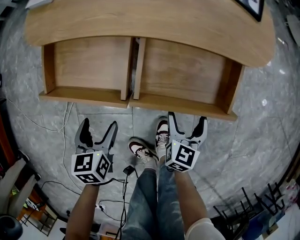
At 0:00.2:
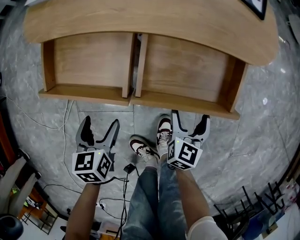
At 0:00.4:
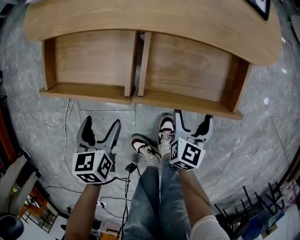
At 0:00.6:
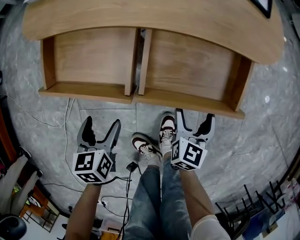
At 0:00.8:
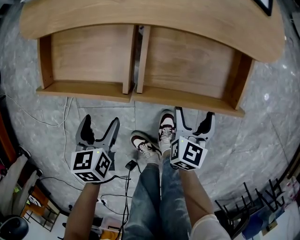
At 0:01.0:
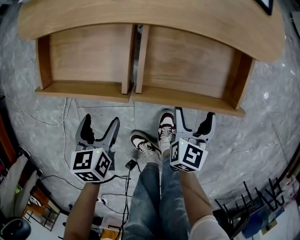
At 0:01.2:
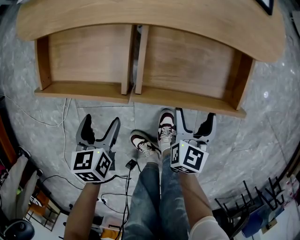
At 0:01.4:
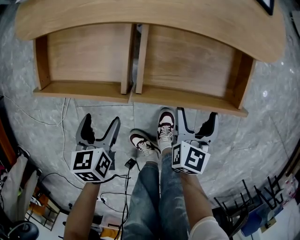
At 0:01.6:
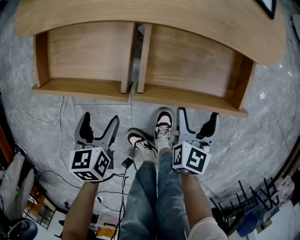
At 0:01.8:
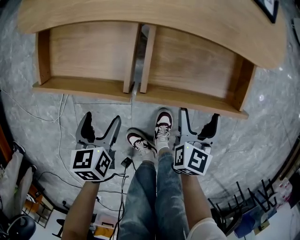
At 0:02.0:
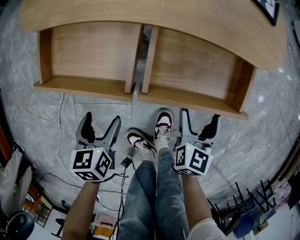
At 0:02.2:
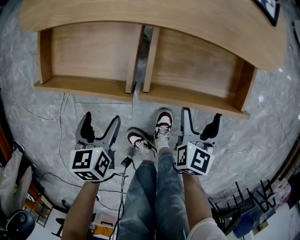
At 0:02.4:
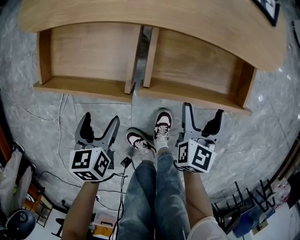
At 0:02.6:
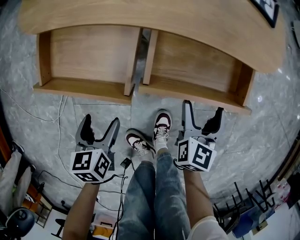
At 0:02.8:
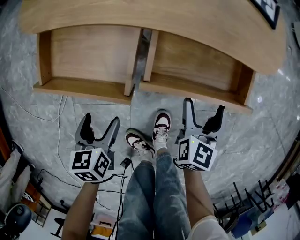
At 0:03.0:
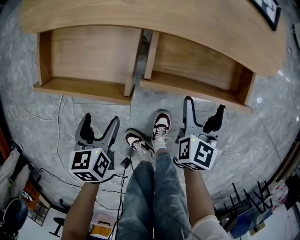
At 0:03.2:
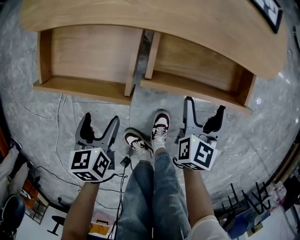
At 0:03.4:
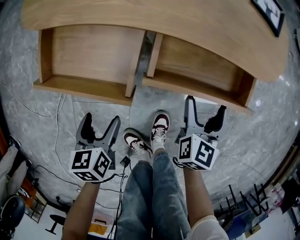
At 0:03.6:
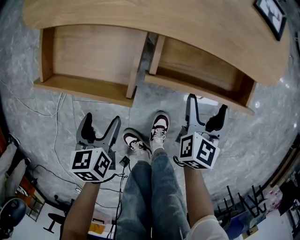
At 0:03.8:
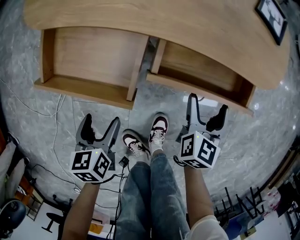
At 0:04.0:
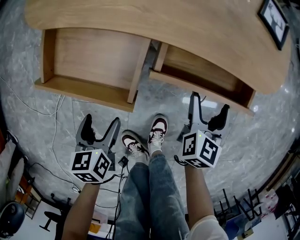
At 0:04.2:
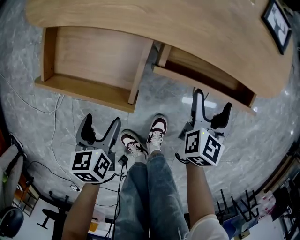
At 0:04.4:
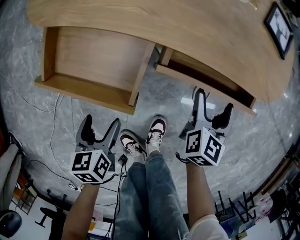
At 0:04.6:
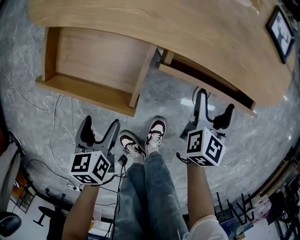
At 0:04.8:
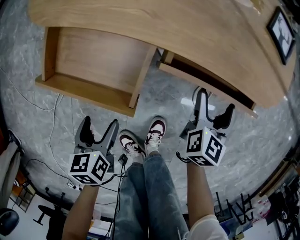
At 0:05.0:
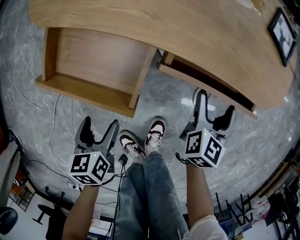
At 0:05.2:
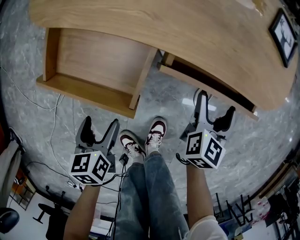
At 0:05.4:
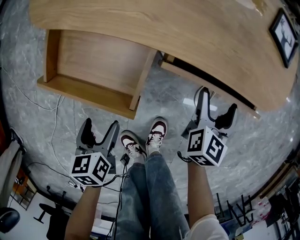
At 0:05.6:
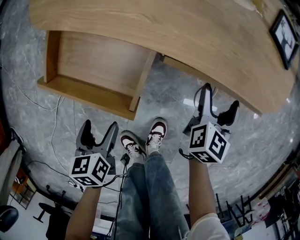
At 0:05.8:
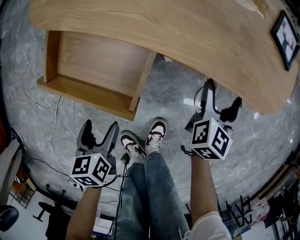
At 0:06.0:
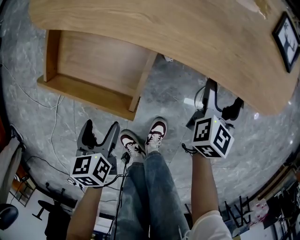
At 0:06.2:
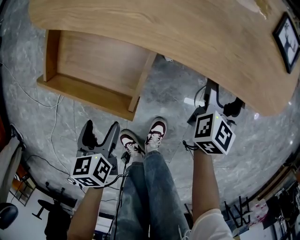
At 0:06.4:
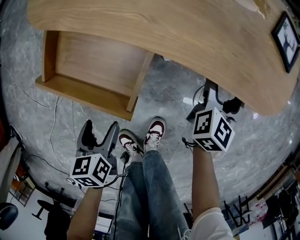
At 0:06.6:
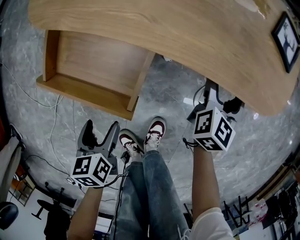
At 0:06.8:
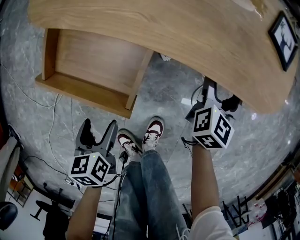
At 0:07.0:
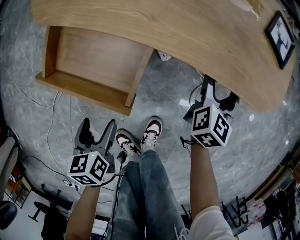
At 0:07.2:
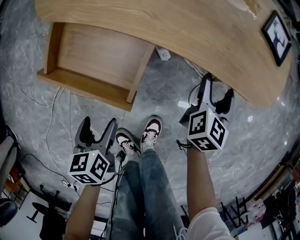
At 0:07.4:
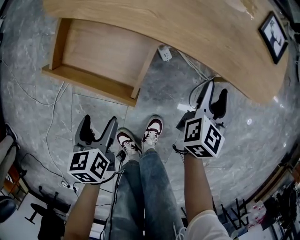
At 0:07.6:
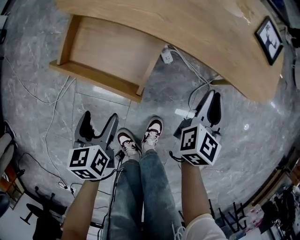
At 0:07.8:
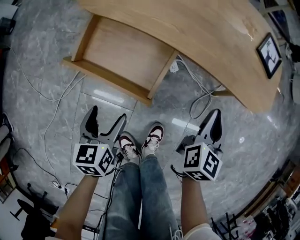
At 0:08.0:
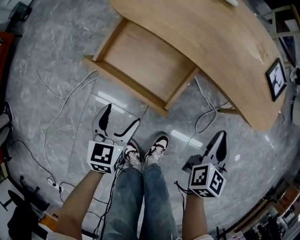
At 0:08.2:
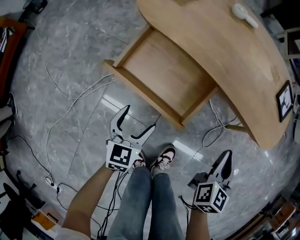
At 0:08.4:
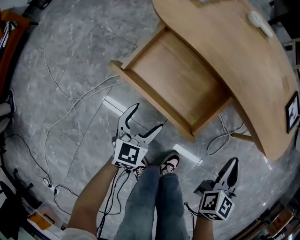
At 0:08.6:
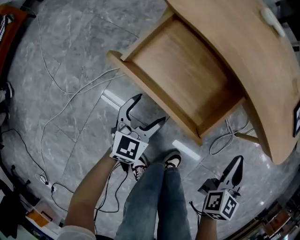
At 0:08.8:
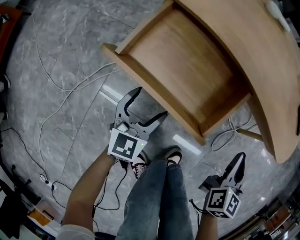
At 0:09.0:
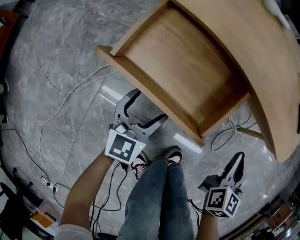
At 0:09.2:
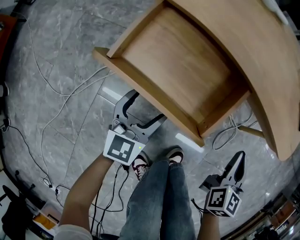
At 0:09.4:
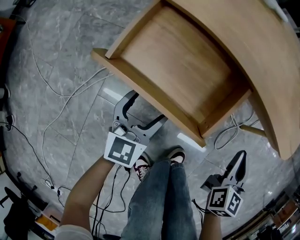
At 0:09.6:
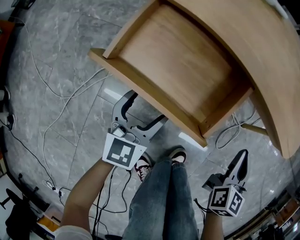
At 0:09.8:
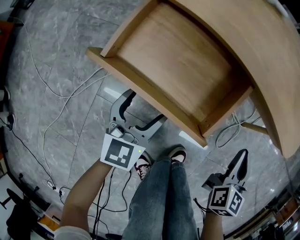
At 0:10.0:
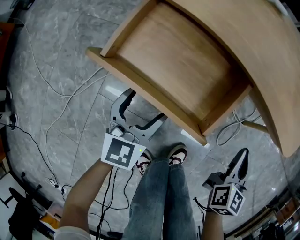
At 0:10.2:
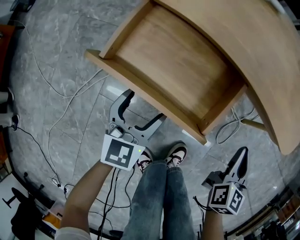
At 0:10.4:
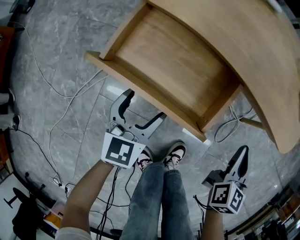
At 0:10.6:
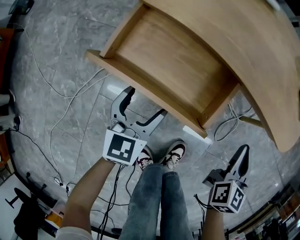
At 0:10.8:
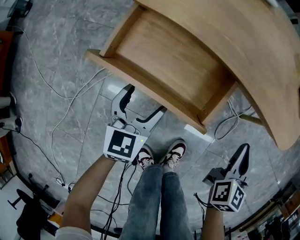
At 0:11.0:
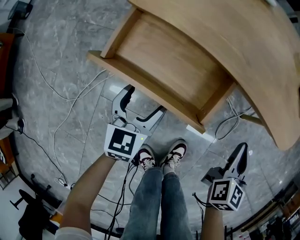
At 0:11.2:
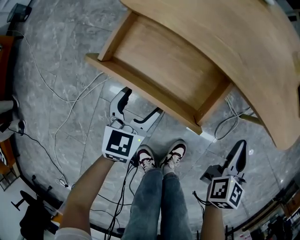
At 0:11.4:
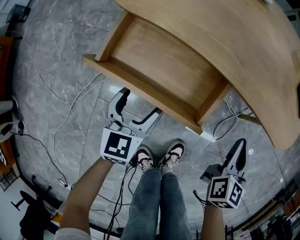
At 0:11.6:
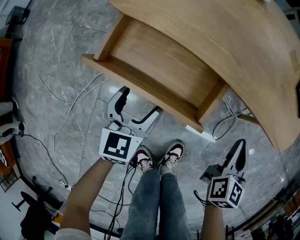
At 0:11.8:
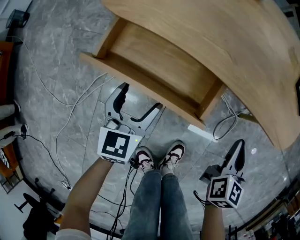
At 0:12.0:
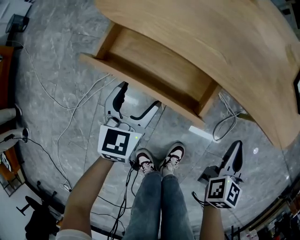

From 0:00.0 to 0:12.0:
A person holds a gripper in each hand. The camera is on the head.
From 0:00.0 to 0:01.6: There are only small adjustments of the grippers.
From 0:01.6 to 0:03.0: The right gripper travels forward by some 5 cm.
From 0:03.0 to 0:04.4: The right gripper shifts roughly 5 cm forward.
From 0:04.4 to 0:06.0: The right gripper heads forward, covering some 5 cm.
From 0:06.0 to 0:07.6: The right gripper heads backward and upward, covering about 10 cm, and closes up, while the left gripper goes some 5 cm upward.
From 0:07.6 to 0:09.0: The right gripper shifts some 5 cm to the left. The left gripper moves downward, forward and to the left, some 15 cm, and turns by some 40 degrees.
From 0:09.0 to 0:10.4: There are only small adjustments of the grippers.
From 0:10.4 to 0:12.0: The left gripper heads forward, covering some 5 cm.

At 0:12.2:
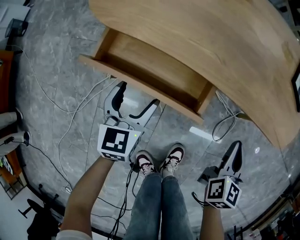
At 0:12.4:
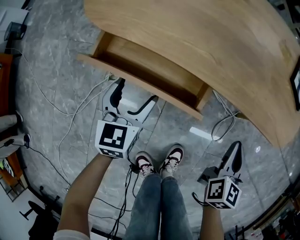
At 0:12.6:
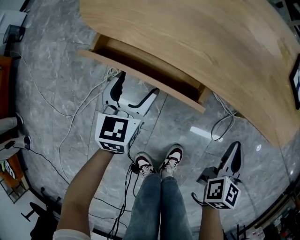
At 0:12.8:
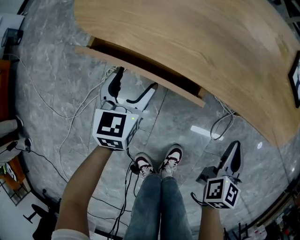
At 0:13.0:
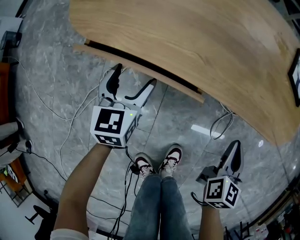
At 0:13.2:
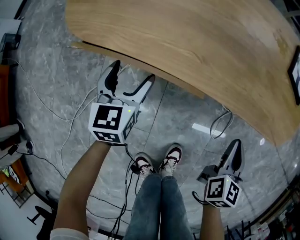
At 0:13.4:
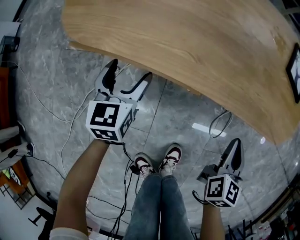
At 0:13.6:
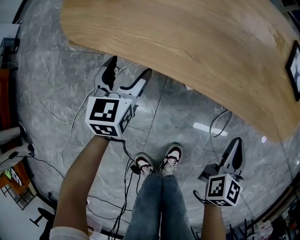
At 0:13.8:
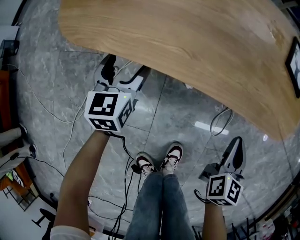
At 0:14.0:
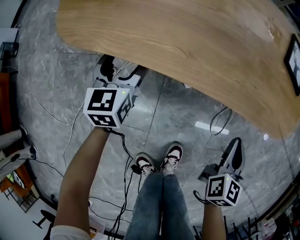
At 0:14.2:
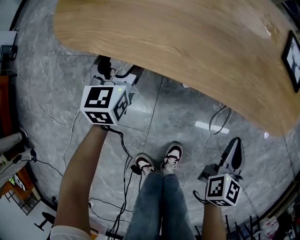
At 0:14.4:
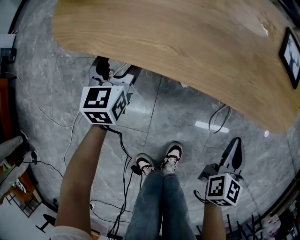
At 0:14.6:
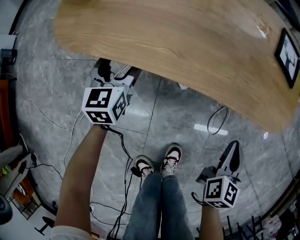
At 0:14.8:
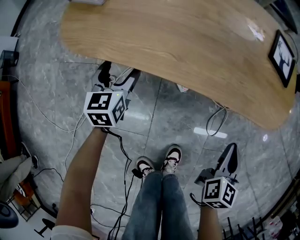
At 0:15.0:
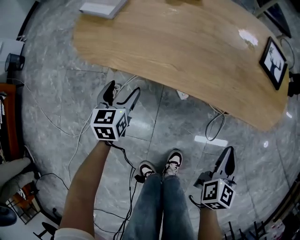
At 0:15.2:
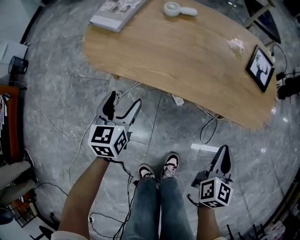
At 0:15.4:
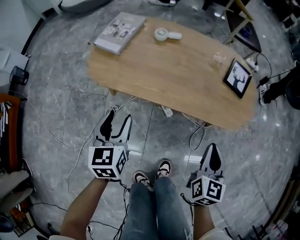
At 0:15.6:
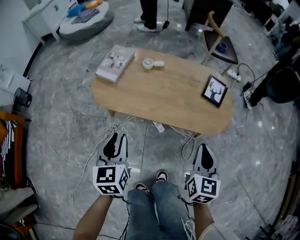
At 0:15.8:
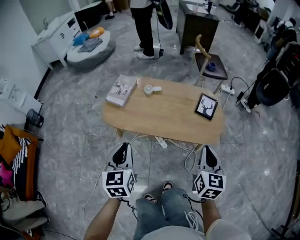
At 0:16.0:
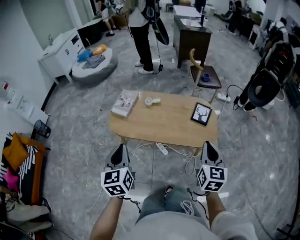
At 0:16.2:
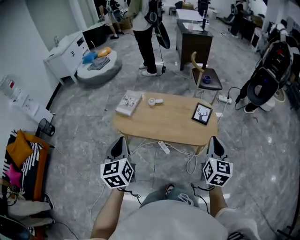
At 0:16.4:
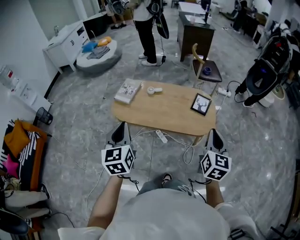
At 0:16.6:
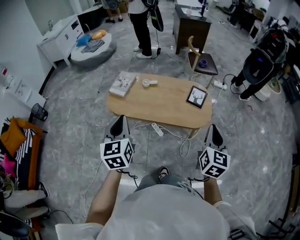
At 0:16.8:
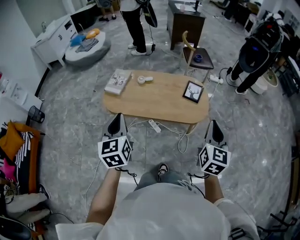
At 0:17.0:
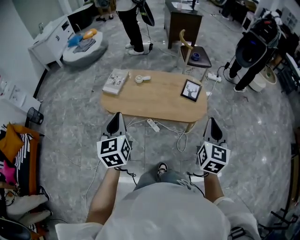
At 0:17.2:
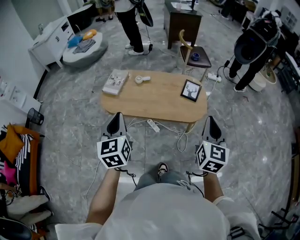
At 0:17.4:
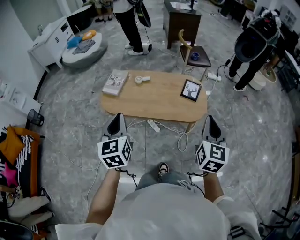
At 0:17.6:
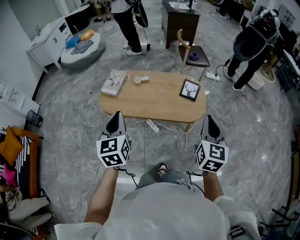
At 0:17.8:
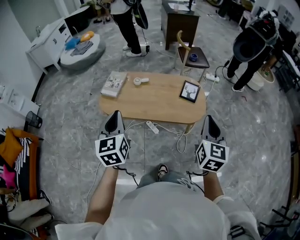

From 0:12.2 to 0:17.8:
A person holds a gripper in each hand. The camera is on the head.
From 0:12.2 to 0:13.6: The left gripper moves forward, roughly 10 cm, while the right gripper moves about 5 cm.
From 0:13.6 to 0:15.0: The right gripper shifts roughly 5 cm upward.
From 0:15.0 to 0:16.4: The grippers both shift upward by approximately 60 cm. The right gripper rotates approximately 20 degrees; the left gripper changes its angle by some 30 degrees, and closes.
From 0:16.4 to 0:17.8: The grippers stay close to where they were, moving slightly.

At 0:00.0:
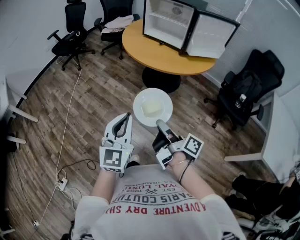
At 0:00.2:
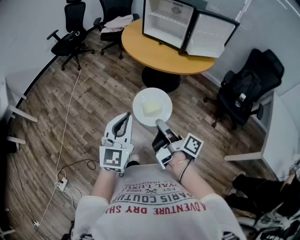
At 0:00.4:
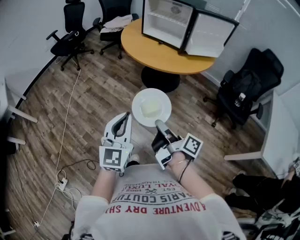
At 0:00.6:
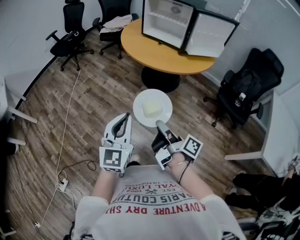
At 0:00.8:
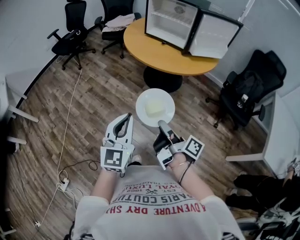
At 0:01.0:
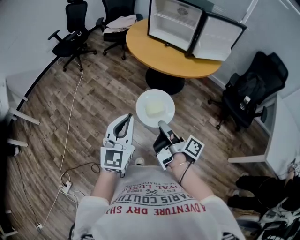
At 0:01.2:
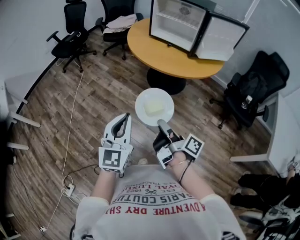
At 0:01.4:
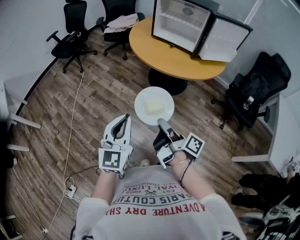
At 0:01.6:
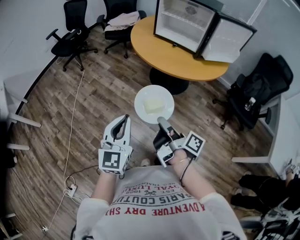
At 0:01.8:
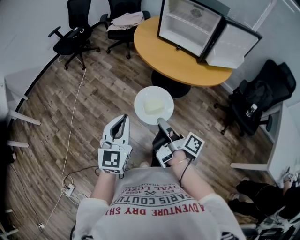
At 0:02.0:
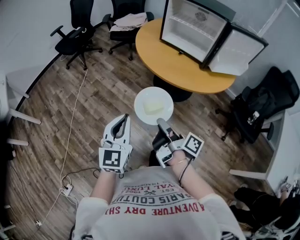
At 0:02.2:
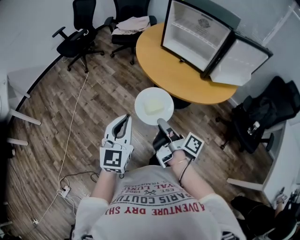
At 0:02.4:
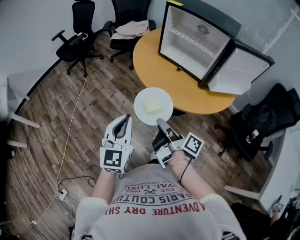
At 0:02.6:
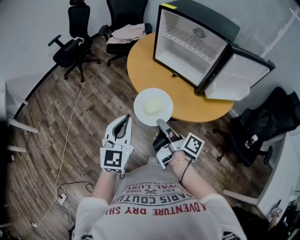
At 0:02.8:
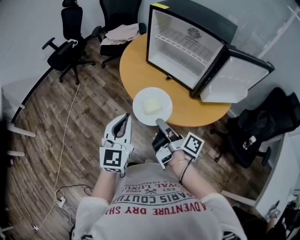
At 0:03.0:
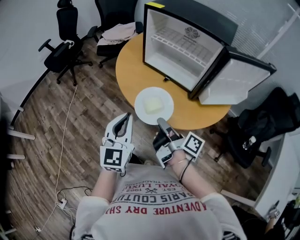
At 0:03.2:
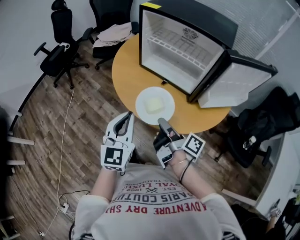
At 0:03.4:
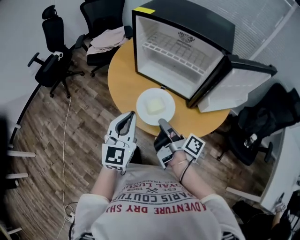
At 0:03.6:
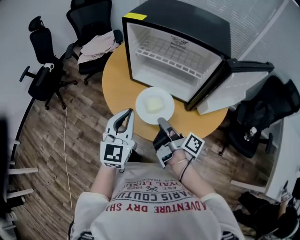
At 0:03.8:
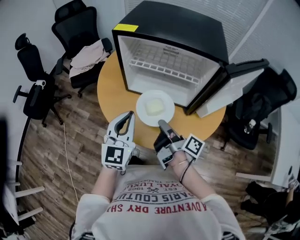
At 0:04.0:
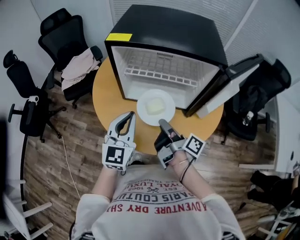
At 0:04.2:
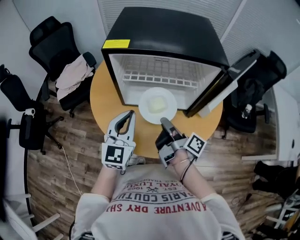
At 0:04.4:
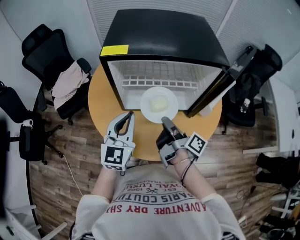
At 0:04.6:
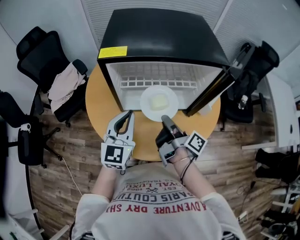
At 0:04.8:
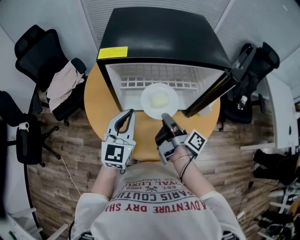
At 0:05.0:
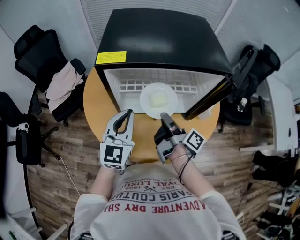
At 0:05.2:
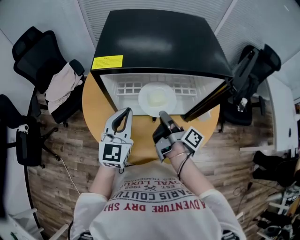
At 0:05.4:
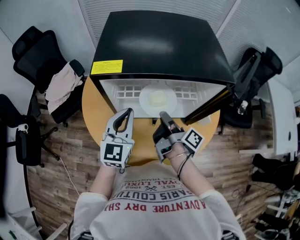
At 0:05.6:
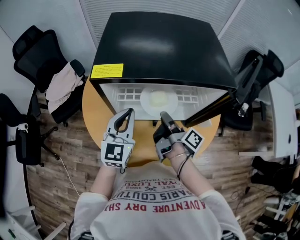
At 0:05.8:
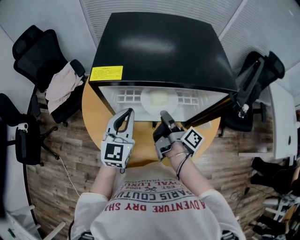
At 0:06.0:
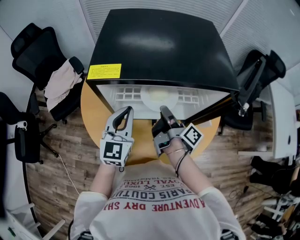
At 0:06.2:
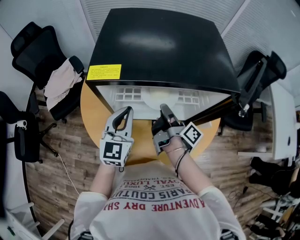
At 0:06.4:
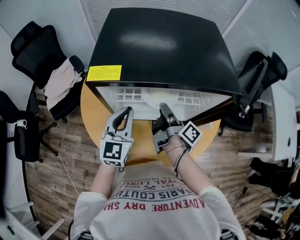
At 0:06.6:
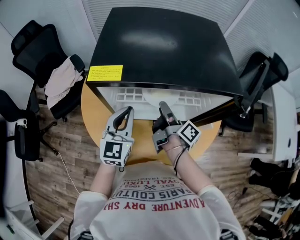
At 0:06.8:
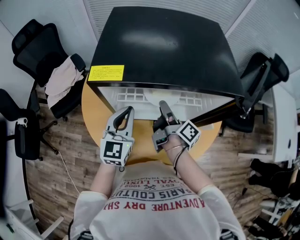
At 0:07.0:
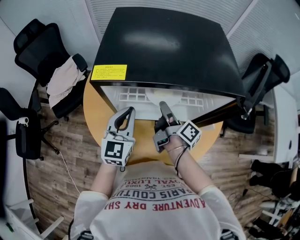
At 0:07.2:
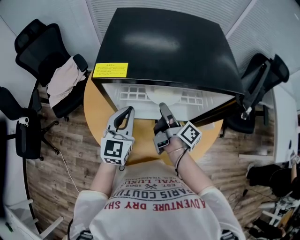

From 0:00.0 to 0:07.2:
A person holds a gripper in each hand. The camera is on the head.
From 0:00.0 to 0:01.4: The left gripper ends up about 15 cm from where it was.
From 0:01.4 to 0:02.8: The left gripper changes place by some 35 cm.
From 0:02.8 to 0:04.4: The left gripper changes place by approximately 35 cm, and rotates approximately 40 degrees.
From 0:04.4 to 0:05.8: The left gripper shifts by approximately 10 cm.
